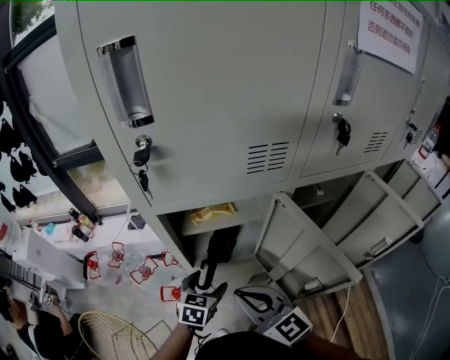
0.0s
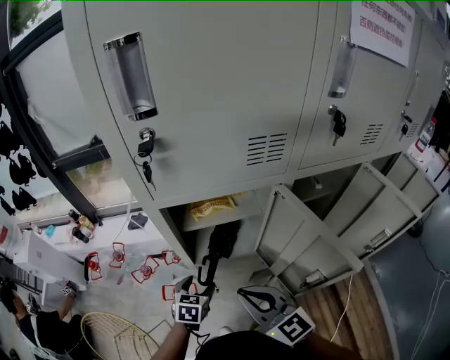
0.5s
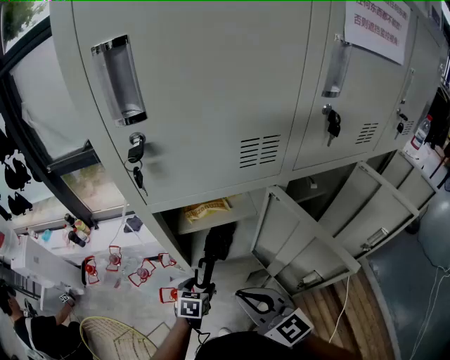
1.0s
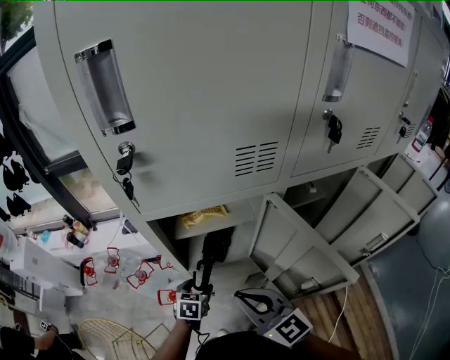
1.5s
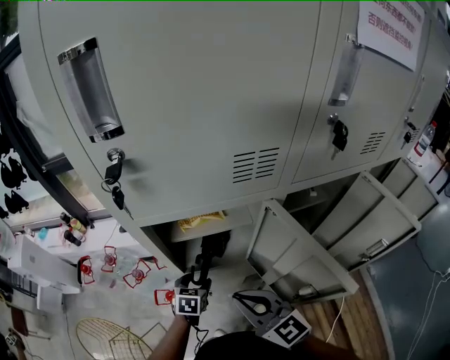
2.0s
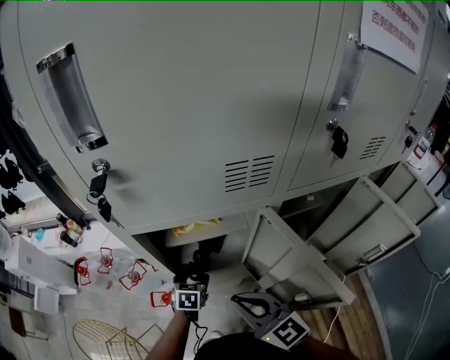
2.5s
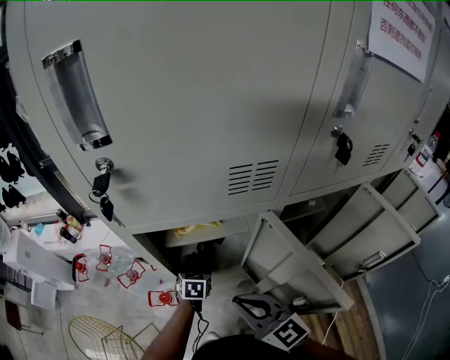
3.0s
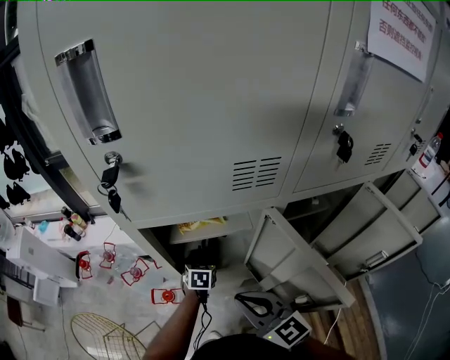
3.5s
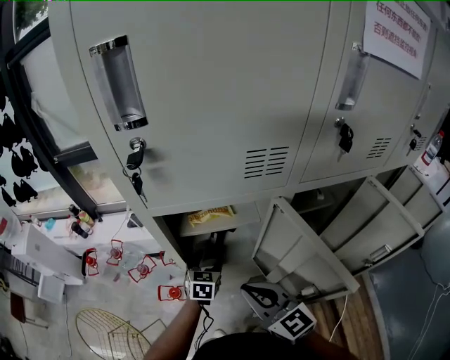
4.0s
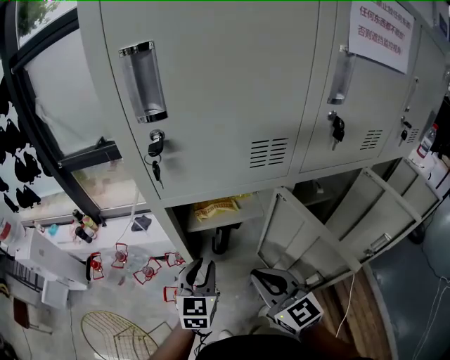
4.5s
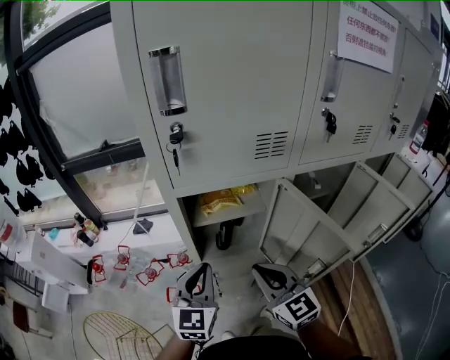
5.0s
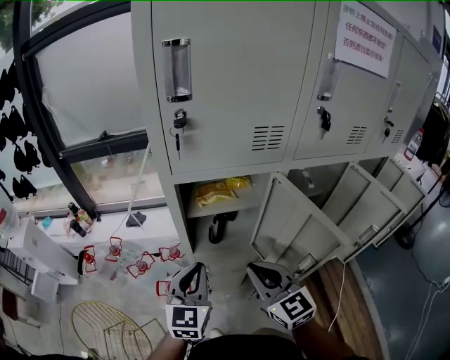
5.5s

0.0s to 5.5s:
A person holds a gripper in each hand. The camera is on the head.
0.0s to 2.0s: The left gripper heads downward, covering approximately 10 cm.
2.0s to 3.5s: The left gripper is displaced forward and to the right by some 10 cm.
3.5s to 5.5s: The right gripper shifts by about 5 cm; the left gripper shifts about 30 cm upward and backward, tips its fingers upward by some 40 degrees, and closes up.

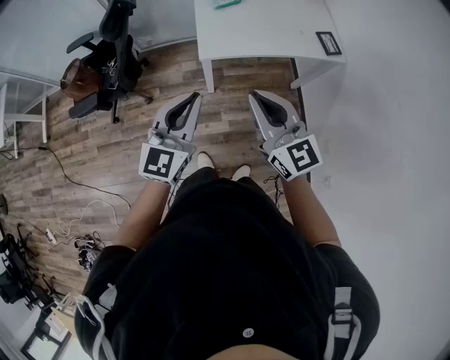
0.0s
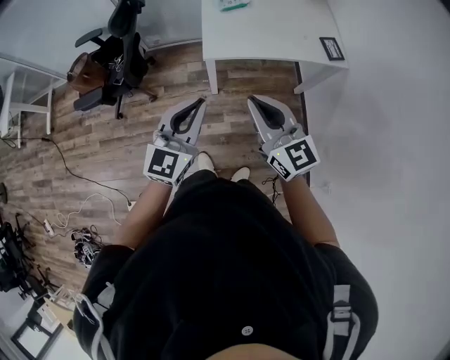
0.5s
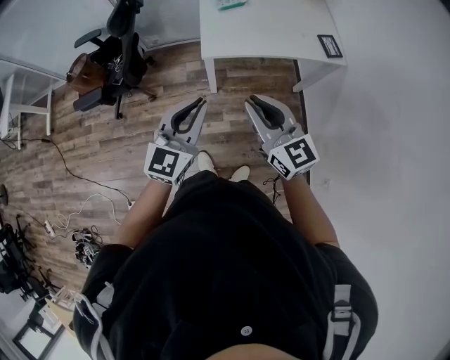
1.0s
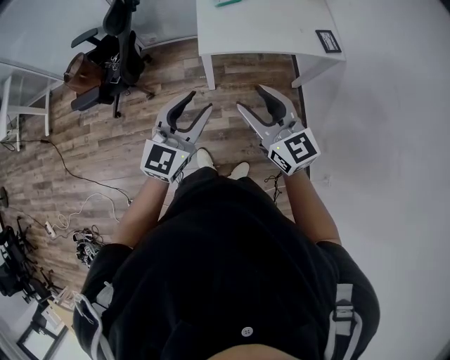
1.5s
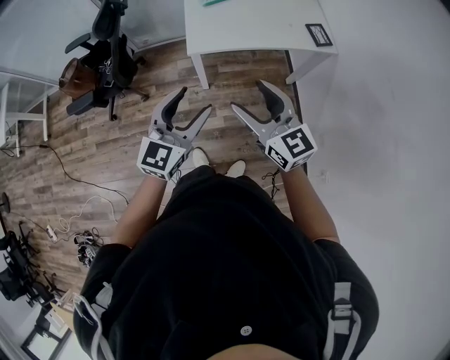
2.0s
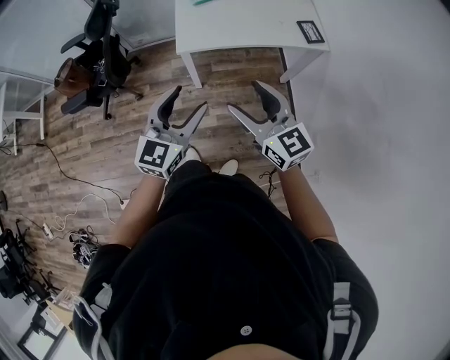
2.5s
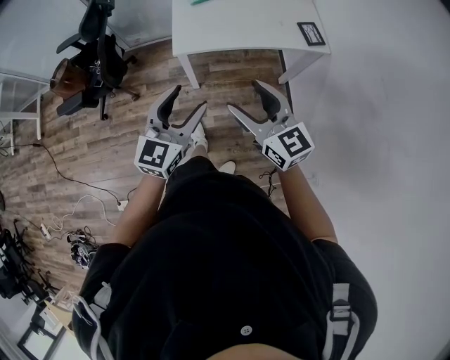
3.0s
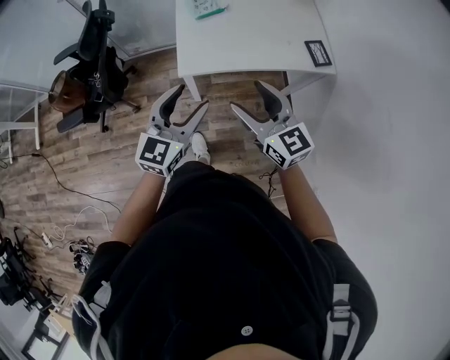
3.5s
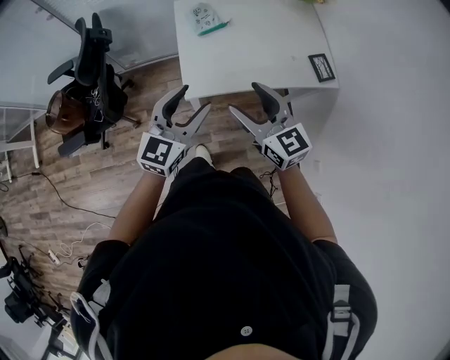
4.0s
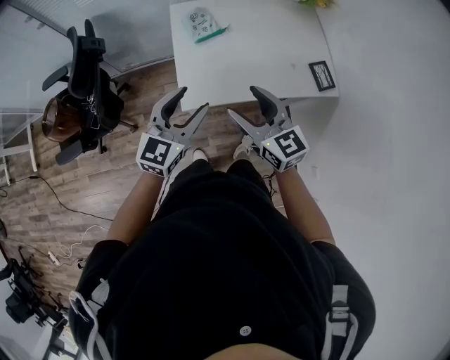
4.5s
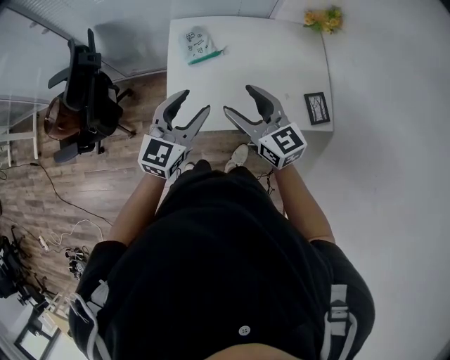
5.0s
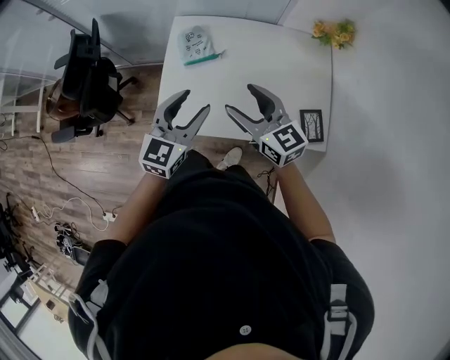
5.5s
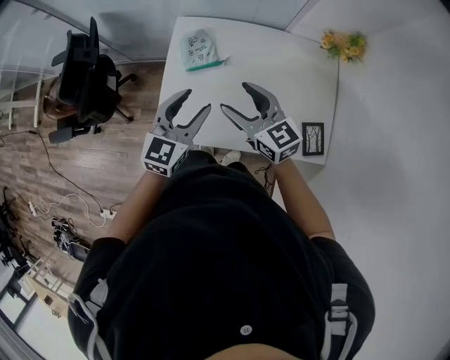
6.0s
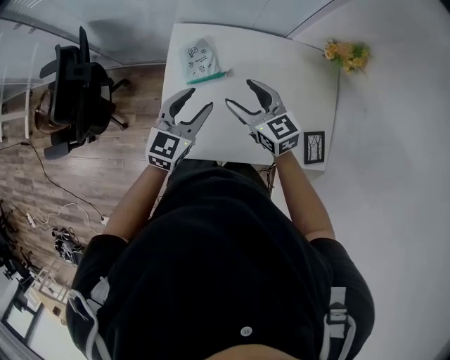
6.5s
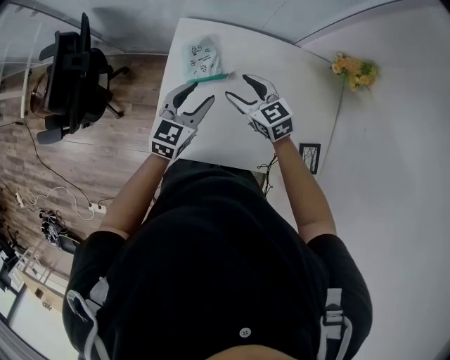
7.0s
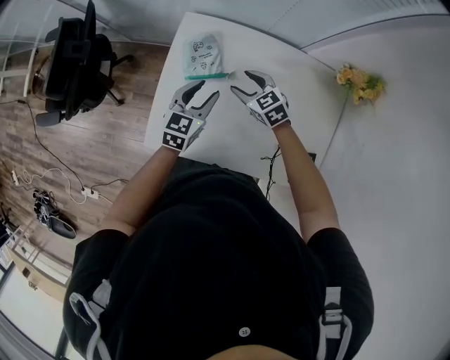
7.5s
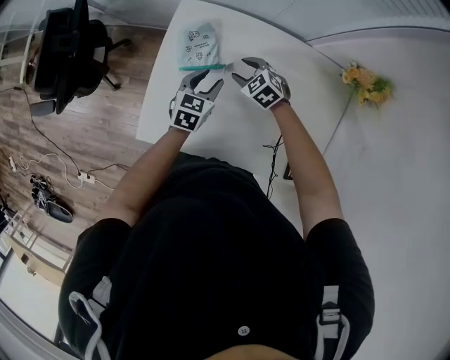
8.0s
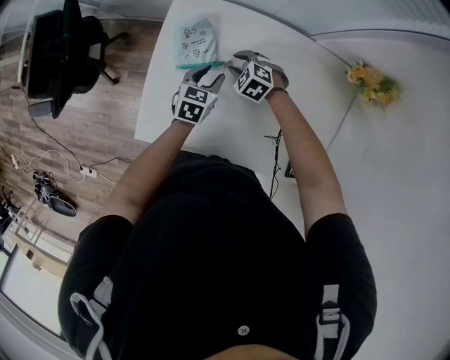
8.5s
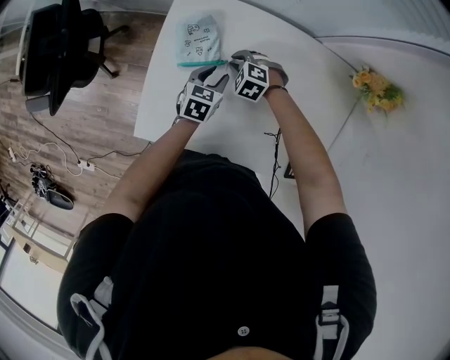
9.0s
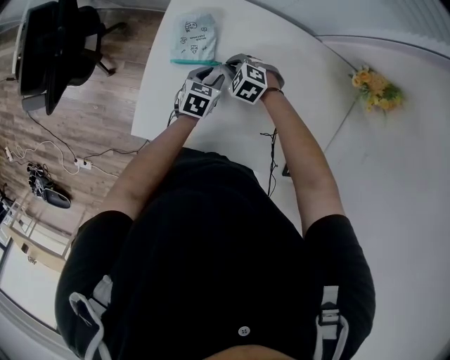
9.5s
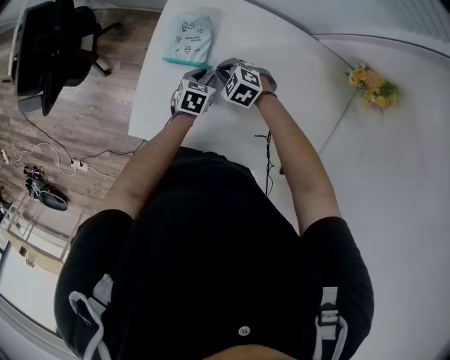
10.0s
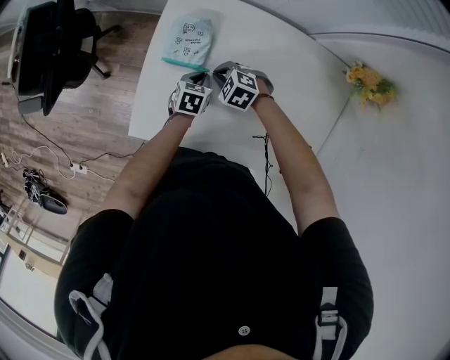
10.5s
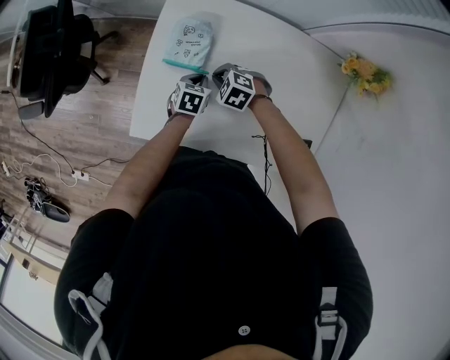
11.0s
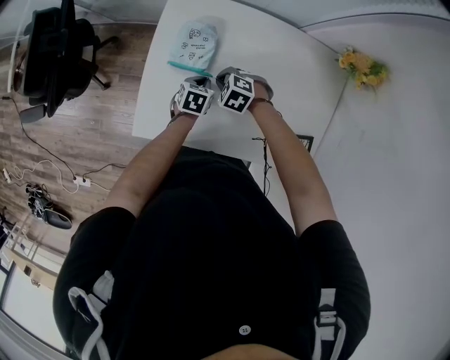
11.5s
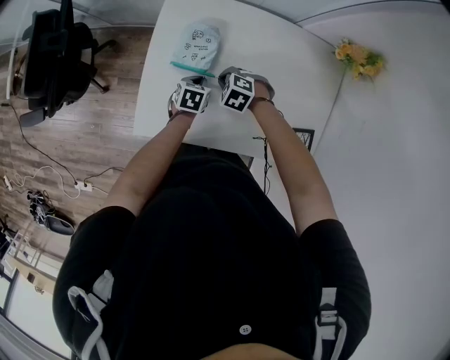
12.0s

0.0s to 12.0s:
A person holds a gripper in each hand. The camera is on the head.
0.0s to 2.0s: The grippers both shift to the right by some 5 cm. The left gripper opens. The right gripper opens.
2.0s to 4.0s: Both grippers travel together forward, some 25 cm.
4.0s to 6.0s: The two grippers go approximately 30 cm forward and to the right. The right gripper changes its angle by roughly 20 degrees.
6.0s to 8.0s: Both grippers move downward and forward, about 30 cm. The right gripper points its fingers some 40 degrees further downward, while the left gripper turns by about 30 degrees.
8.0s to 10.0s: The left gripper travels downward by some 10 cm, and changes its angle by some 20 degrees. Meanwhile the right gripper is displaced to the left and downward by approximately 10 cm, and closes.
10.0s to 12.0s: The right gripper moves backward, some 5 cm, while the left gripper shifts by about 5 cm, and closes.

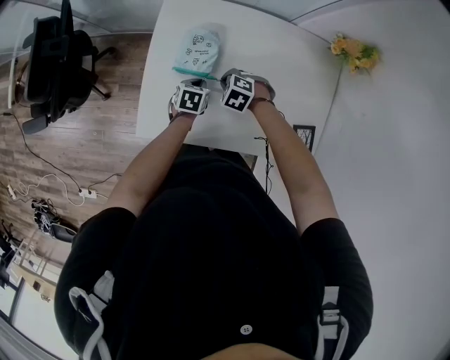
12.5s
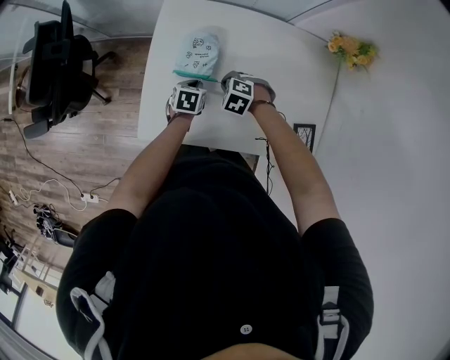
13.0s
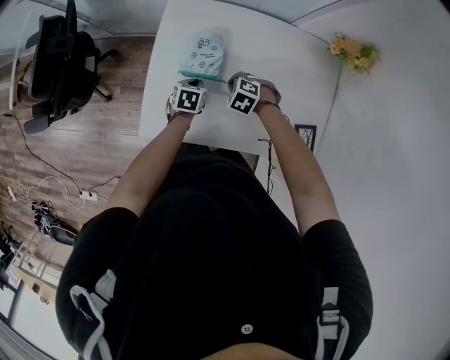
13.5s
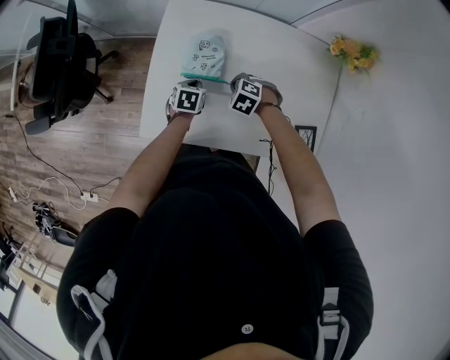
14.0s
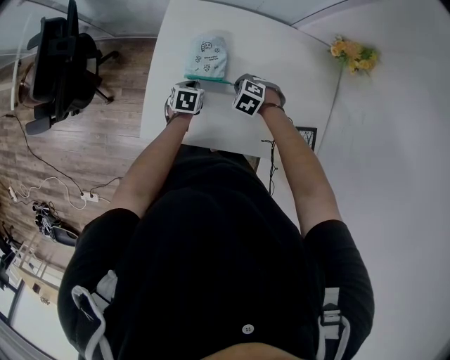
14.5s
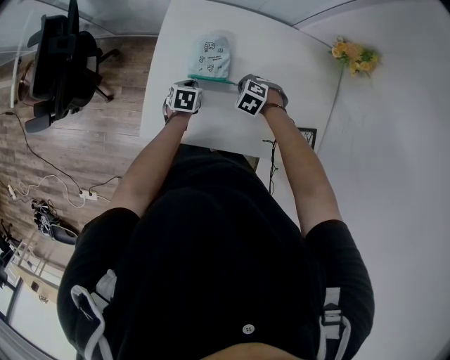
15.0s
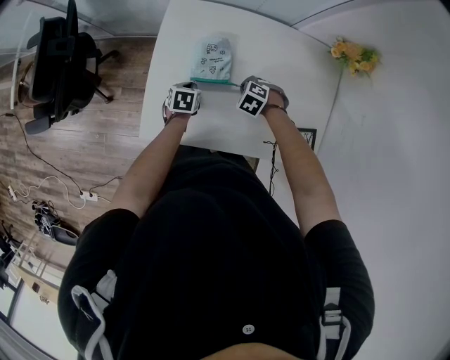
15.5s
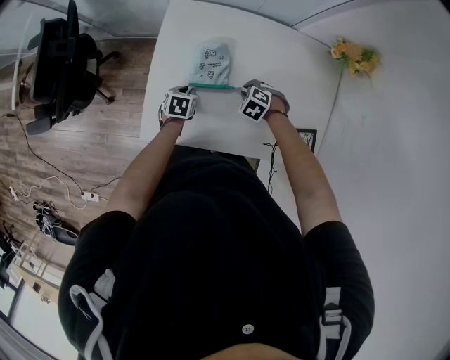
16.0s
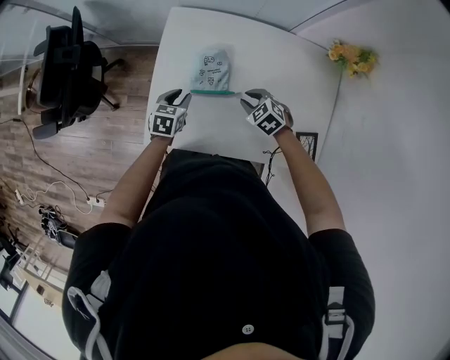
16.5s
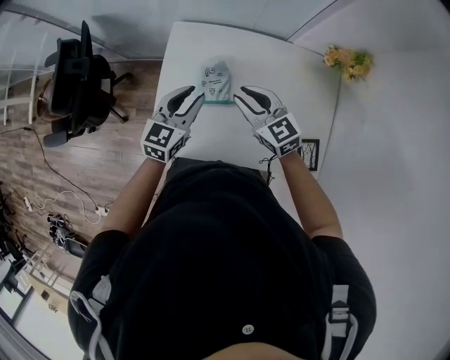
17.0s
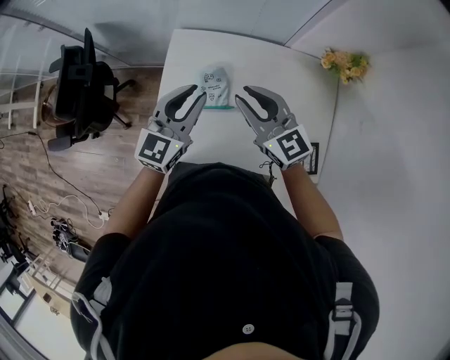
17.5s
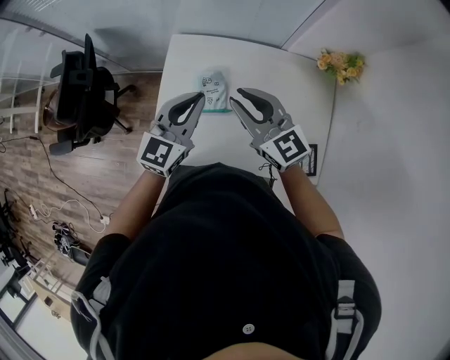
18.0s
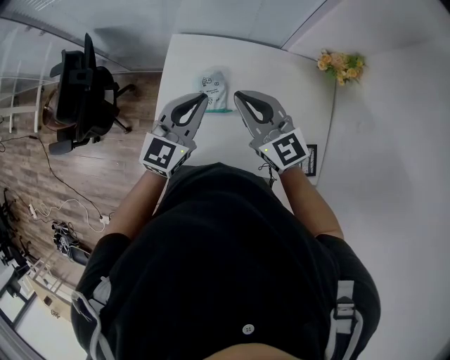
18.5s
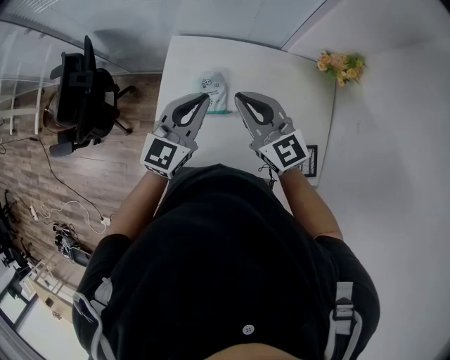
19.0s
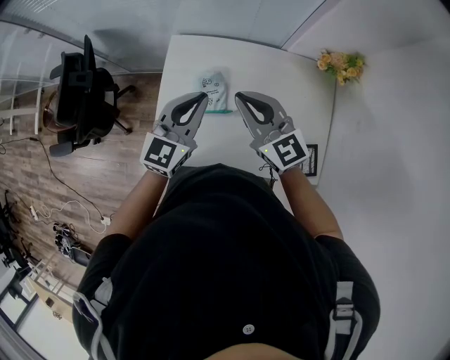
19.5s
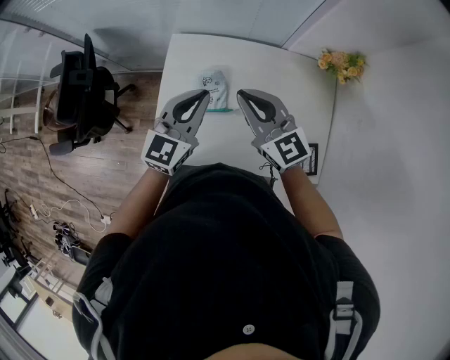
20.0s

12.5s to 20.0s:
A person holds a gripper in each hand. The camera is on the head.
12.5s to 14.5s: The grippers make only small movements.
14.5s to 16.5s: The left gripper travels upward by approximately 5 cm, and opens up. Meanwhile the right gripper moves about 5 cm, and swivels roughly 20 degrees.
16.5s to 18.0s: The two grippers go roughly 30 cm upward. The right gripper tips its fingers upward by roughly 50 degrees; the left gripper tips its fingers upward by about 40 degrees, and closes its fingers.
18.0s to 20.0s: The grippers make only small movements.

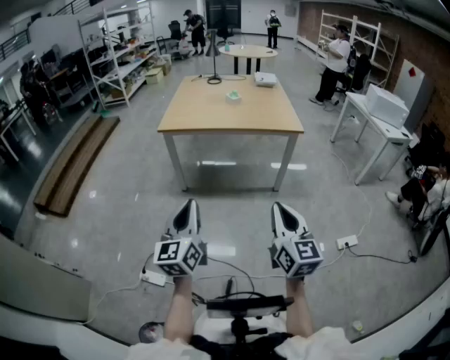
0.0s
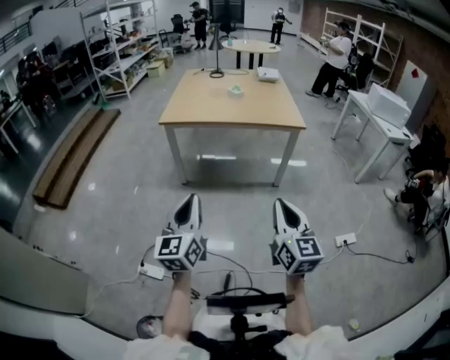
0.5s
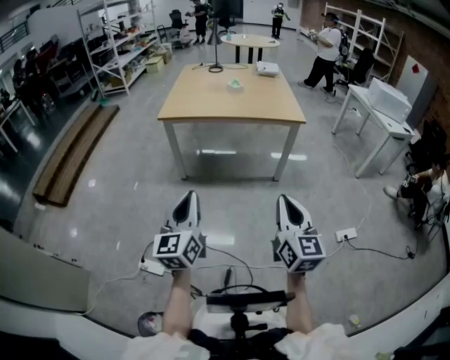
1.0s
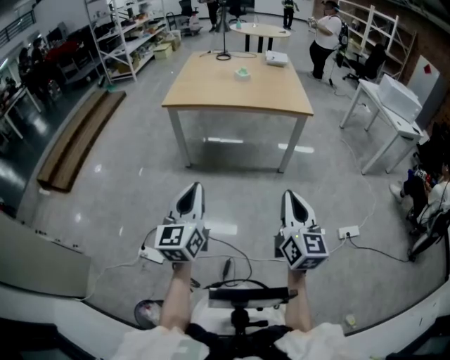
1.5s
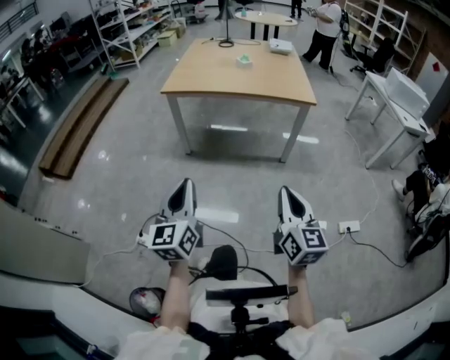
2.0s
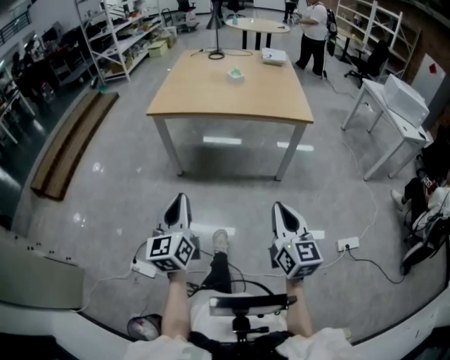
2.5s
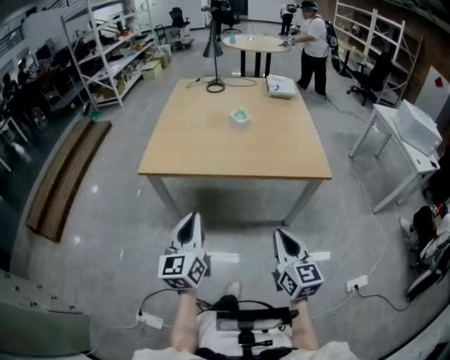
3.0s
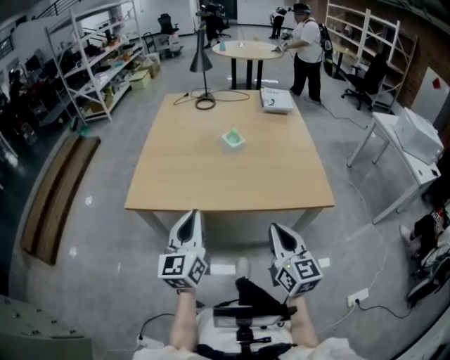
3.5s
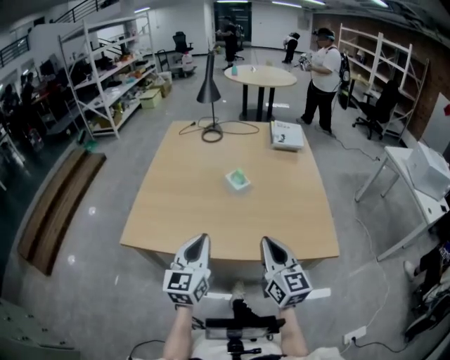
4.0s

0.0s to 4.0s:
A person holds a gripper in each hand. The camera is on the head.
0.0s to 2.0s: The right gripper moves to the right, about 5 cm.
2.0s to 4.0s: The pair of grippers is taken forward, about 80 cm.
